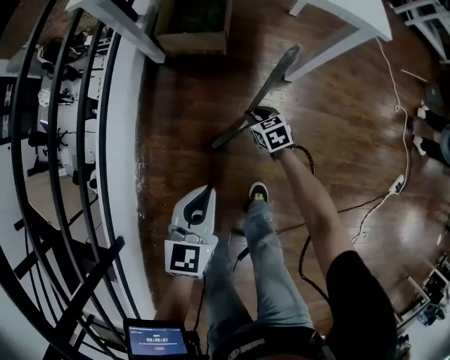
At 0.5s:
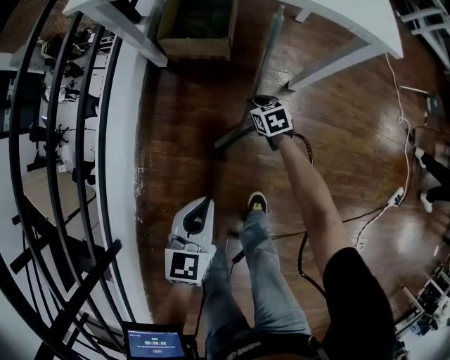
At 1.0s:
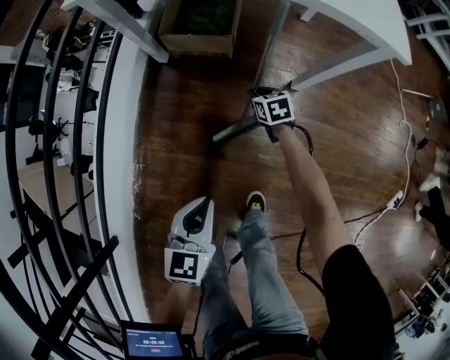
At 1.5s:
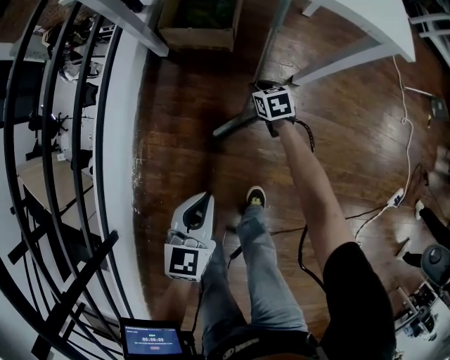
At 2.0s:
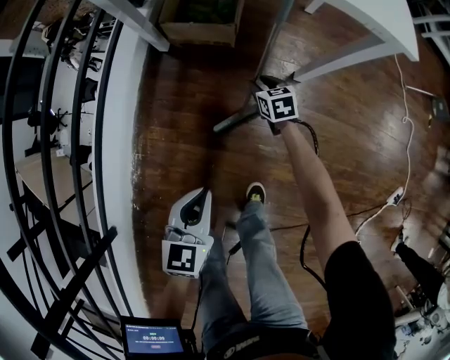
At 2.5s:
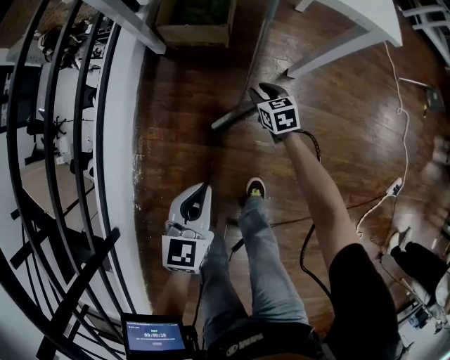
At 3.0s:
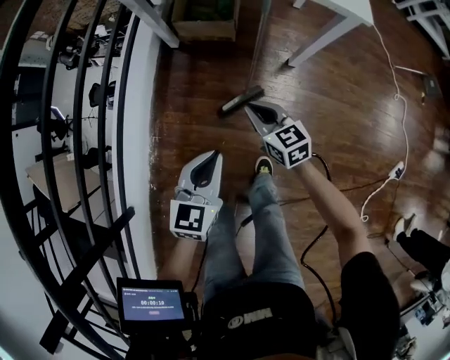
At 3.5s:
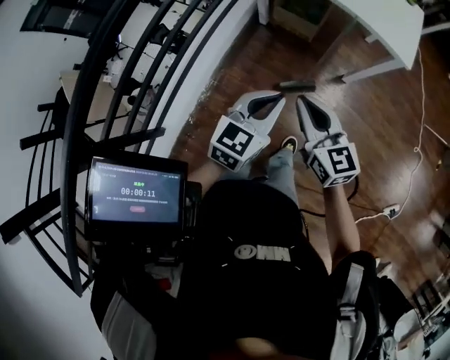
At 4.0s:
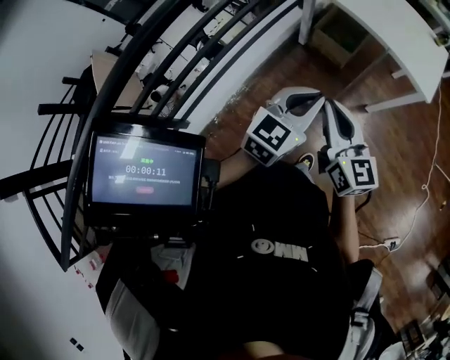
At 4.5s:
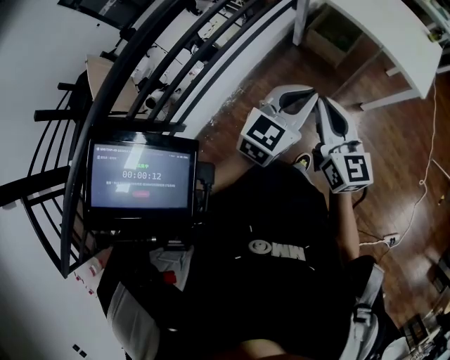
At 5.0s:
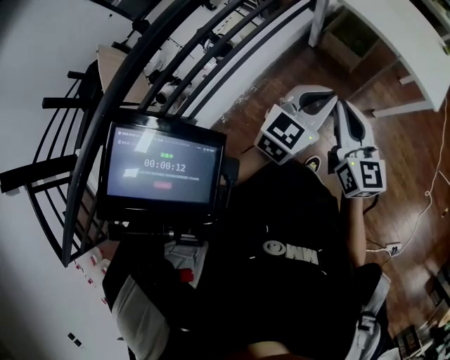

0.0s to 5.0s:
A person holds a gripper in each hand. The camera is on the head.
0.0s to 2.5s: The right gripper goes about 5 cm forward.
2.5s to 5.0s: The left gripper is displaced upward by about 30 cm, and changes its angle by approximately 20 degrees, while the right gripper shifts approximately 60 cm upward and backward, points its fingers about 40 degrees further upward, and closes its fingers.

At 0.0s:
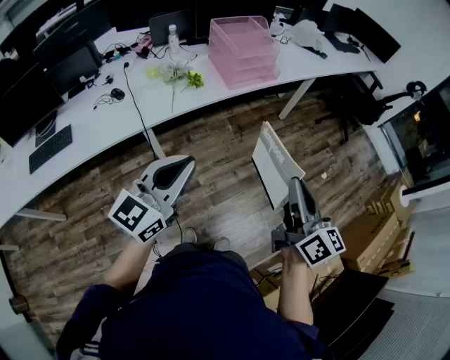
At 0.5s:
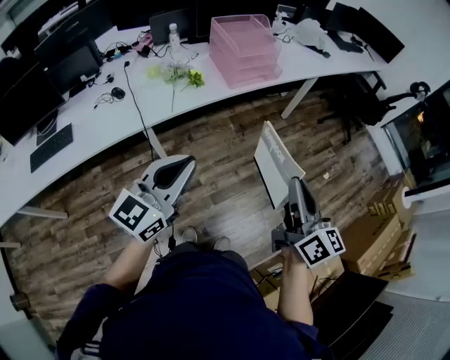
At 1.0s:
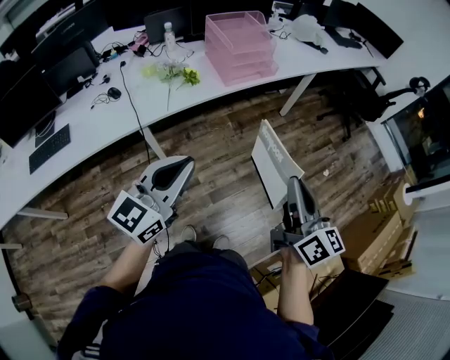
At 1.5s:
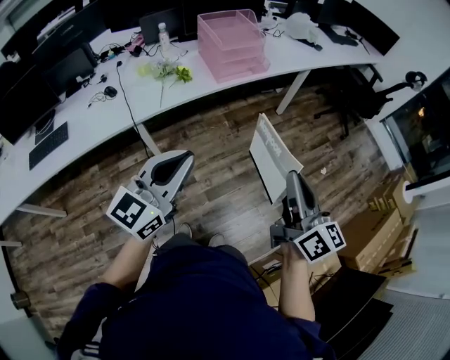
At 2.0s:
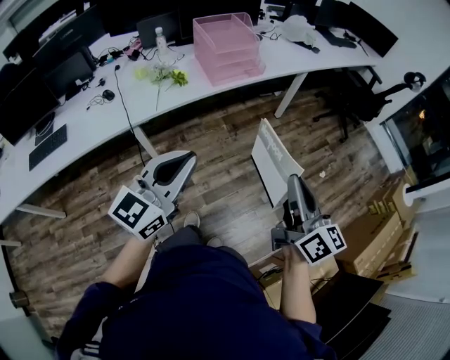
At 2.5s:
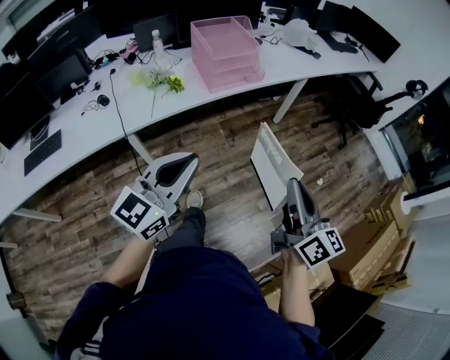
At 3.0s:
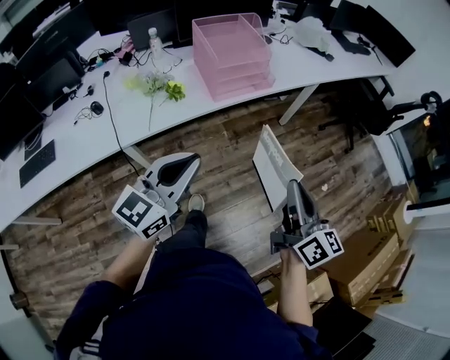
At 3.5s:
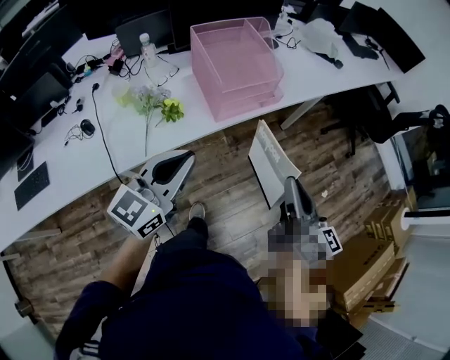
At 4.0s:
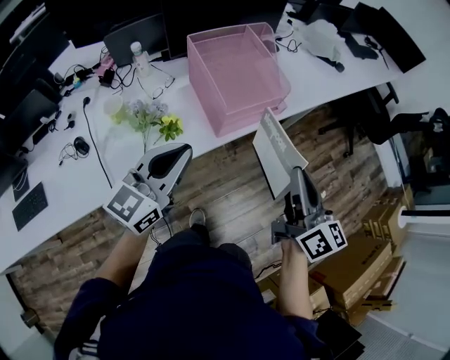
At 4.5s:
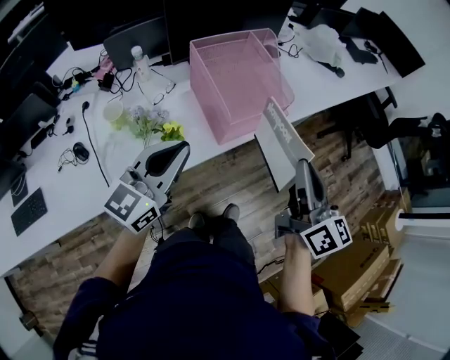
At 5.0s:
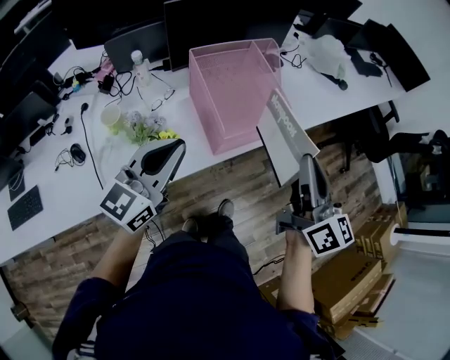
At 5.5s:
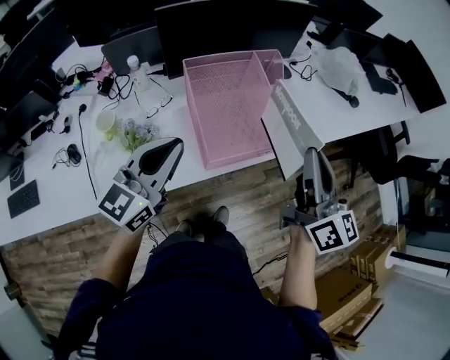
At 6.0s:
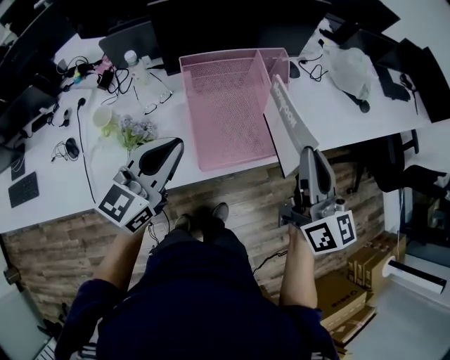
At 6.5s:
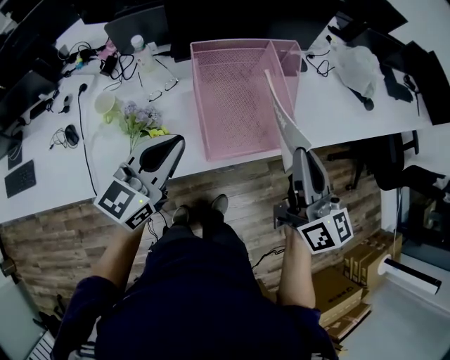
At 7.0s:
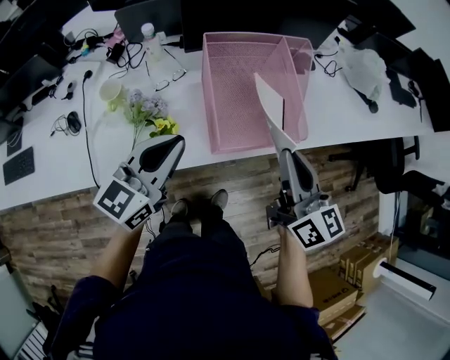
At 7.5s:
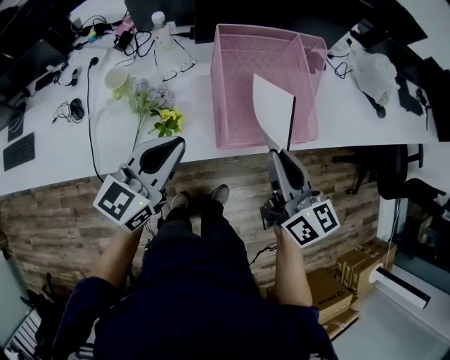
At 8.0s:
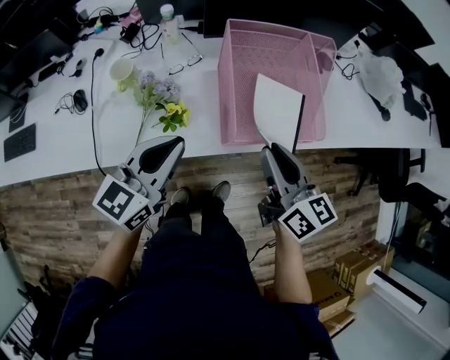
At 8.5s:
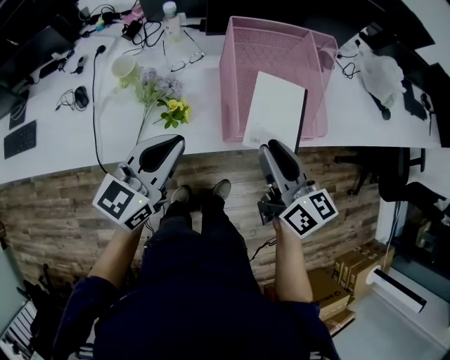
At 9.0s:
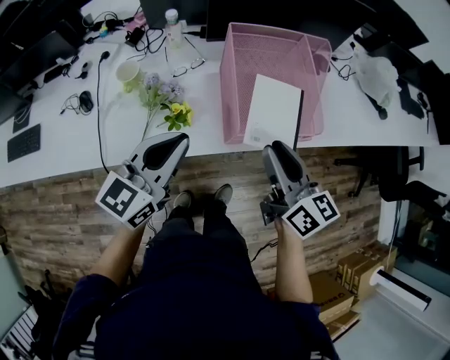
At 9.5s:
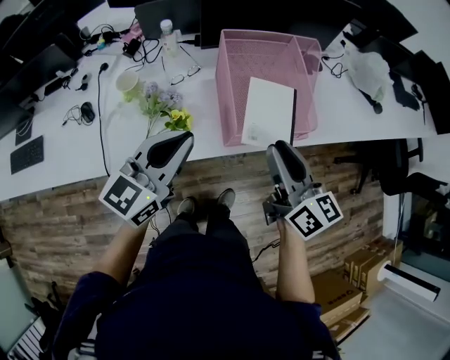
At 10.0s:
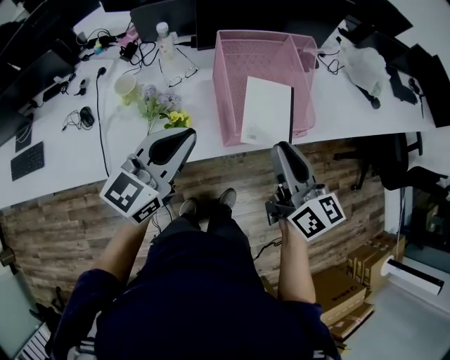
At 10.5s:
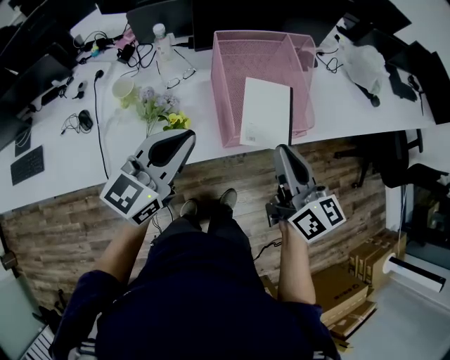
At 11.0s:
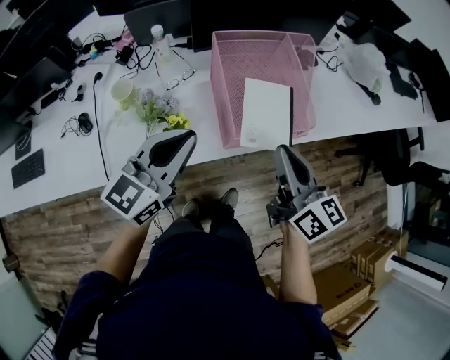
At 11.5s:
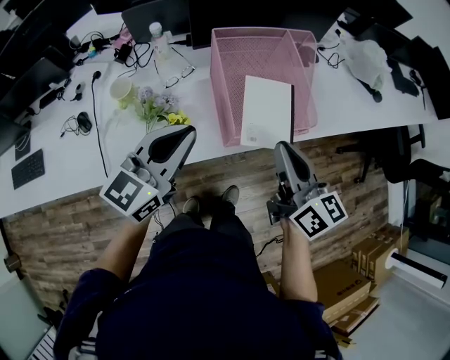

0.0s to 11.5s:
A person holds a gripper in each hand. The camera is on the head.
0.0s to 2.0s: Both grippers move to the right, some 10 cm.
2.0s to 4.0s: The two grippers travel together, forward, roughly 40 cm.
4.0s to 6.0s: The two grippers go some 20 cm forward.
6.0s to 7.5s: The right gripper is displaced to the left and downward by approximately 15 cm, and changes its angle by about 20 degrees. The left gripper shifts some 5 cm backward.
7.5s to 9.5s: The grippers make only small movements.
9.5s to 11.5s: The right gripper closes its fingers.

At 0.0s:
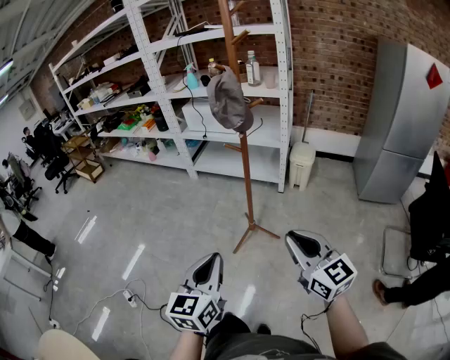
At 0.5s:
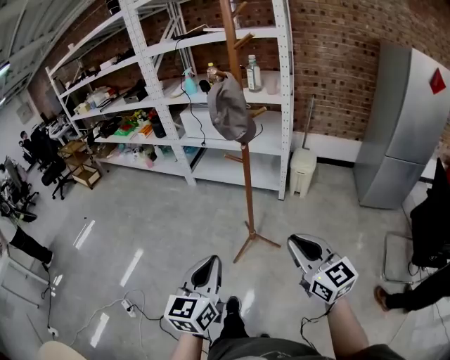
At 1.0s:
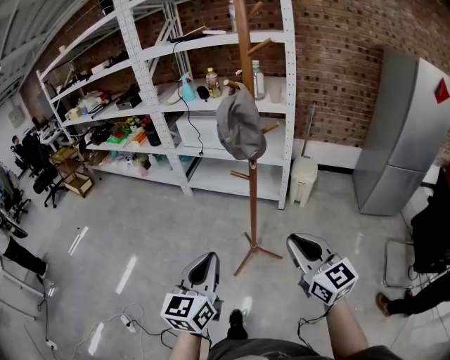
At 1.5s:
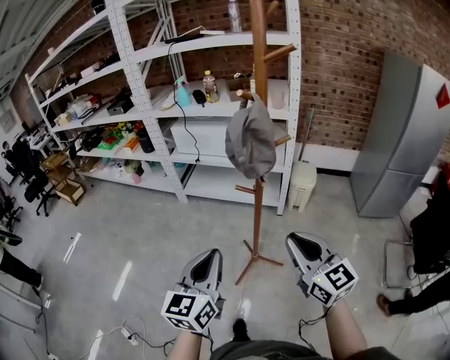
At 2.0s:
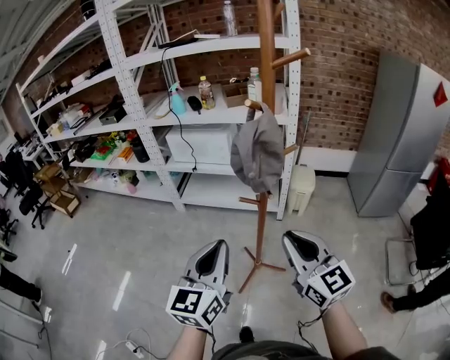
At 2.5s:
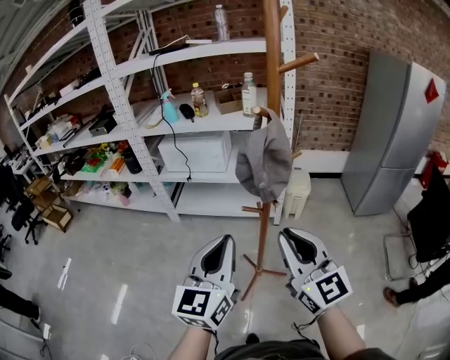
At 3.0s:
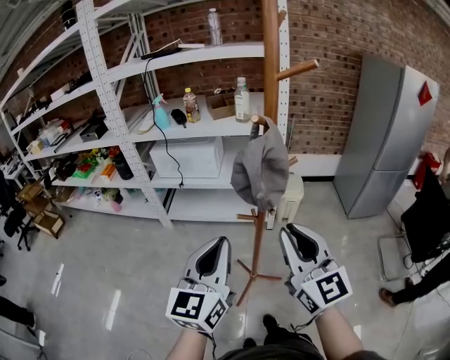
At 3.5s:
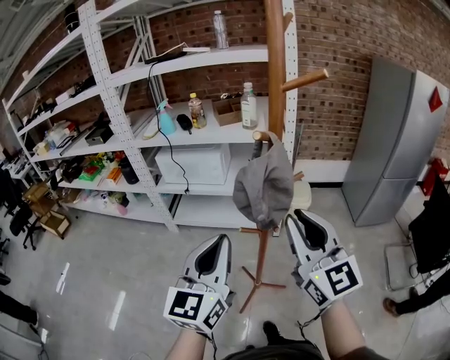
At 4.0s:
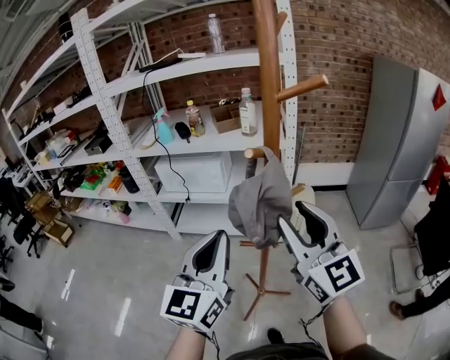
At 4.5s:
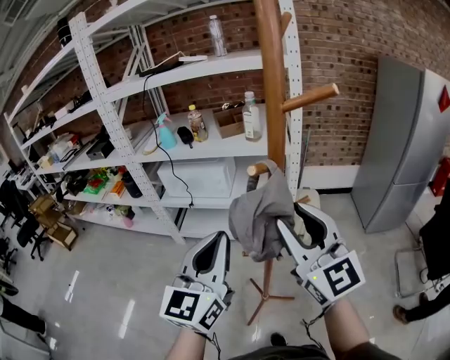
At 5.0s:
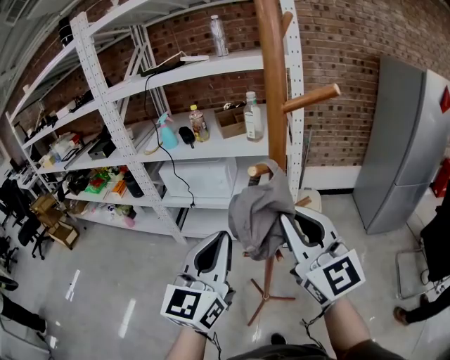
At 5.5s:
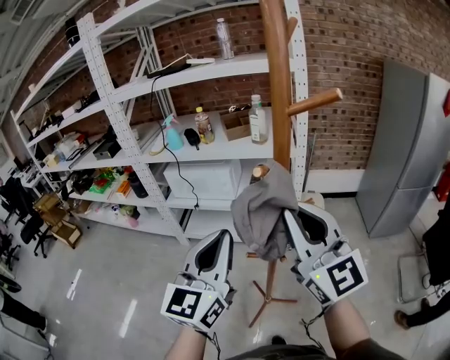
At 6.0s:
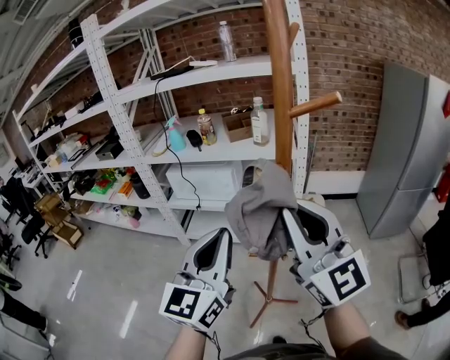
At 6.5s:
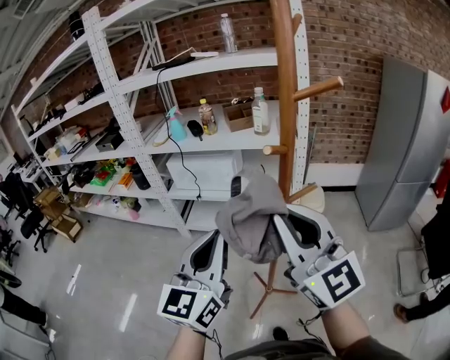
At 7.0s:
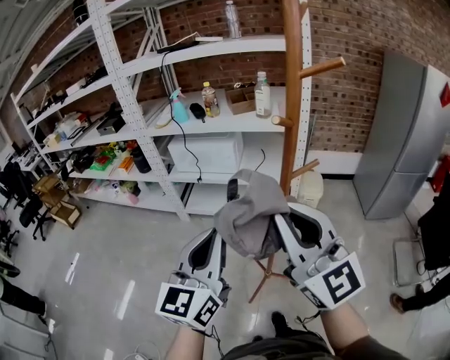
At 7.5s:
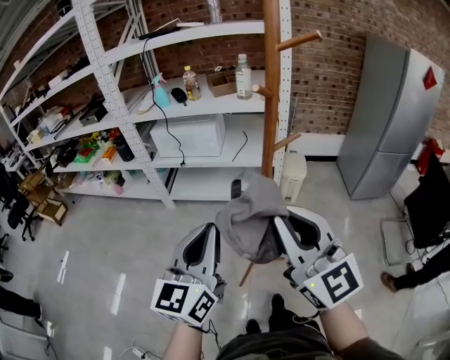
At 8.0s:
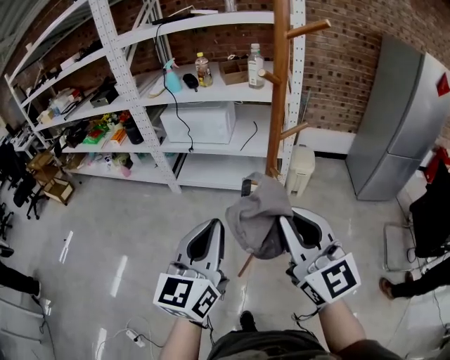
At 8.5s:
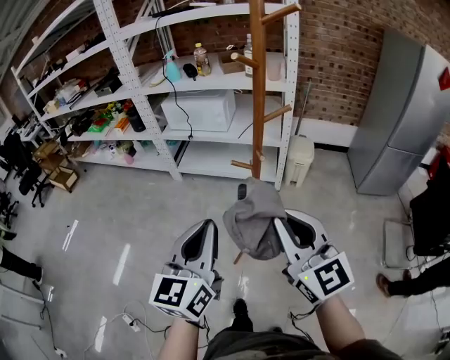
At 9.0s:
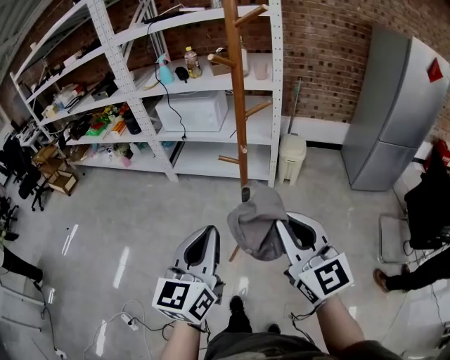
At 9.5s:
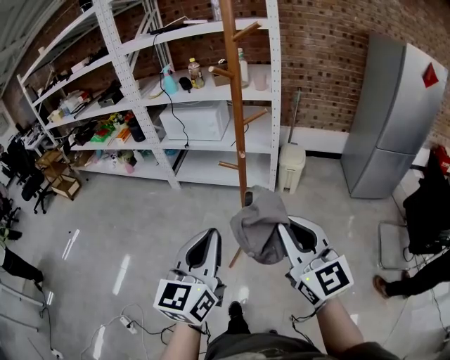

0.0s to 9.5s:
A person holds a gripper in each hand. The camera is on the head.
0.0s to 2.0s: The two grippers go about 30 cm forward.
2.0s to 4.0s: The grippers both shift forward and upward by some 15 cm. The right gripper opens its fingers.
4.0s to 5.5s: The right gripper closes its fingers.
5.5s to 7.5s: The left gripper moves backward, downward and to the left, some 15 cm. The right gripper is displaced backward by approximately 15 cm.
7.5s to 9.5s: The left gripper goes about 20 cm backward and to the right, while the right gripper goes some 20 cm backward, to the right and downward.

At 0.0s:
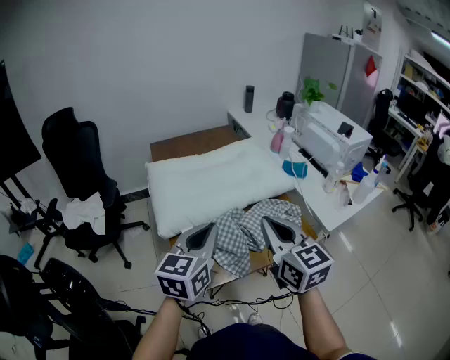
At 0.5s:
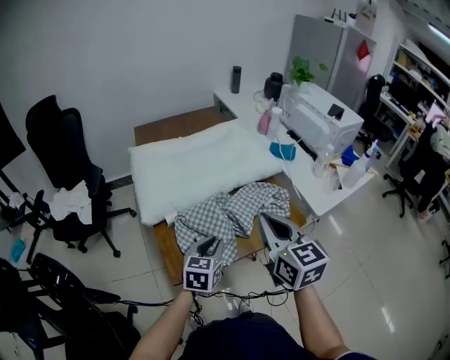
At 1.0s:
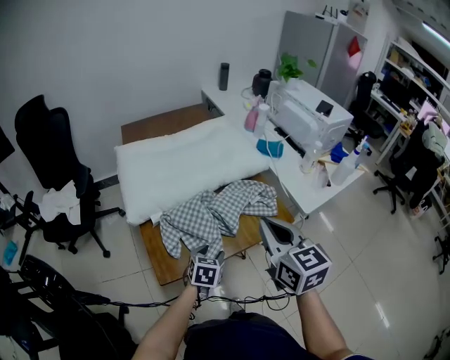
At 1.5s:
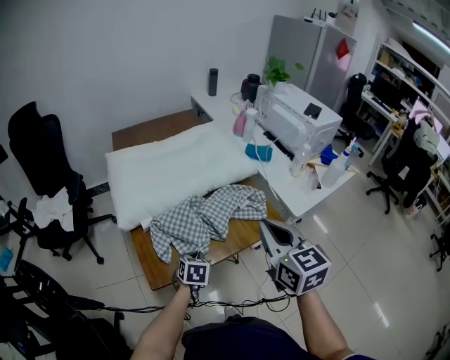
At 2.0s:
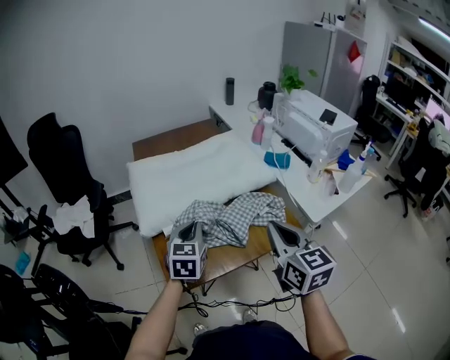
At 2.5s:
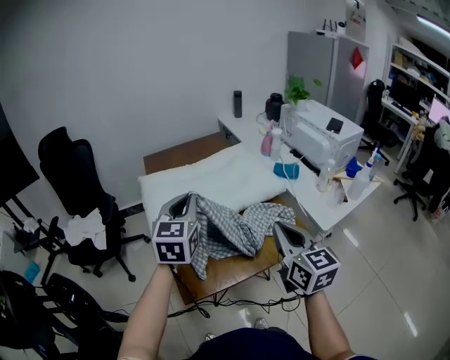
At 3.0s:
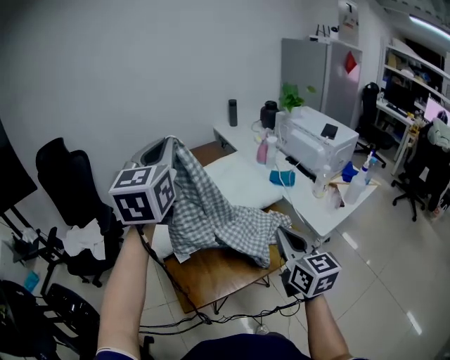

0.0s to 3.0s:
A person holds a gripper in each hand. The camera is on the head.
0.0s to 1.5s: The left gripper shifts about 30 cm downward, tilts its fingers roughly 40 degrees downward, and opens, then closes once more. The right gripper is displaced to the right by approximately 10 cm.
1.5s to 3.0s: The left gripper goes roughly 50 cm upward, and tilts its fingers about 50 degrees upward.
